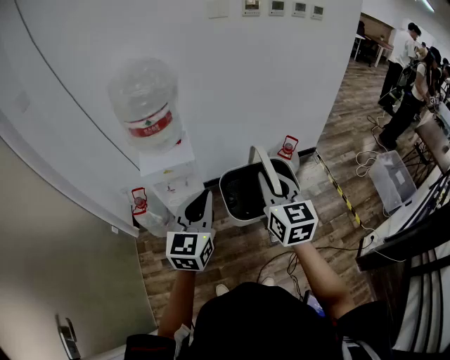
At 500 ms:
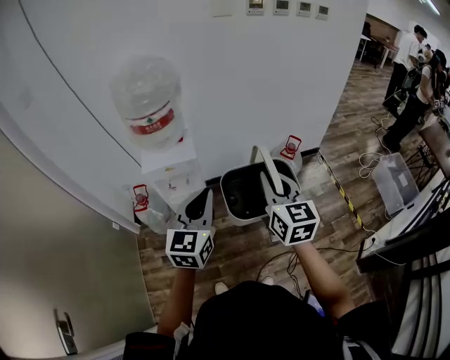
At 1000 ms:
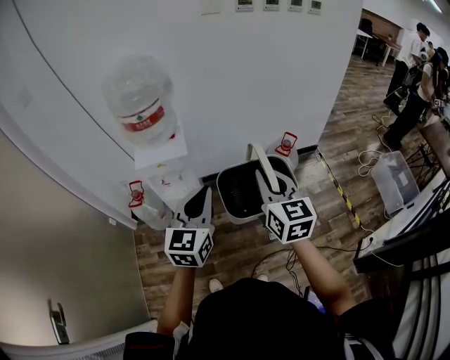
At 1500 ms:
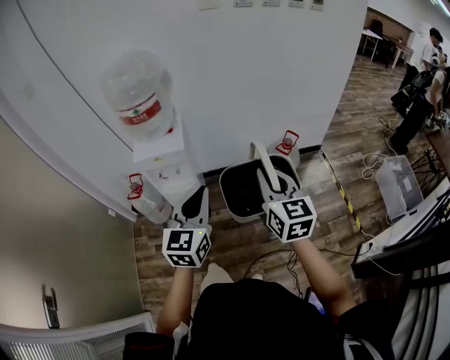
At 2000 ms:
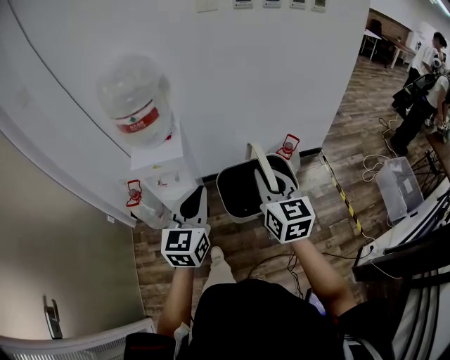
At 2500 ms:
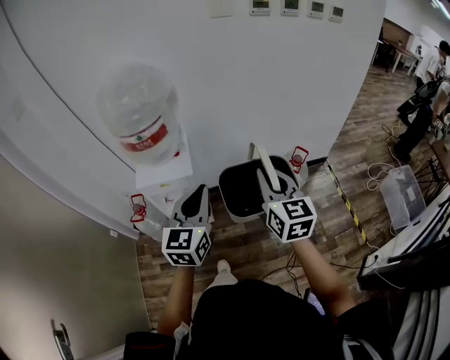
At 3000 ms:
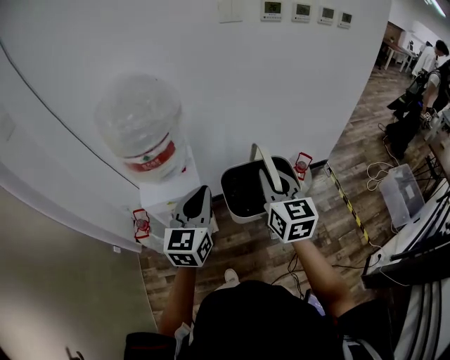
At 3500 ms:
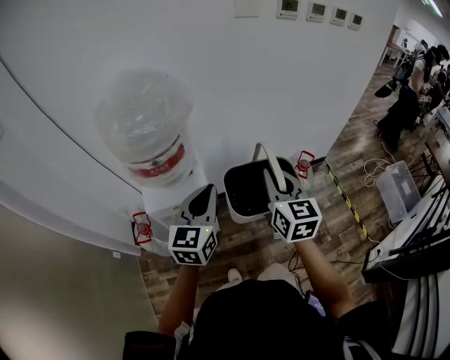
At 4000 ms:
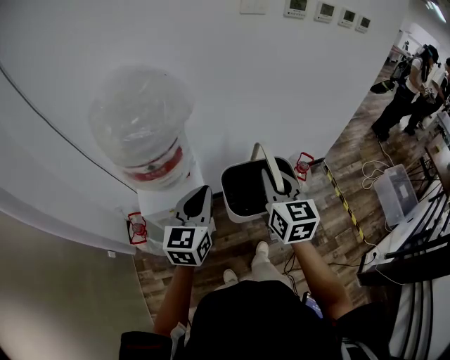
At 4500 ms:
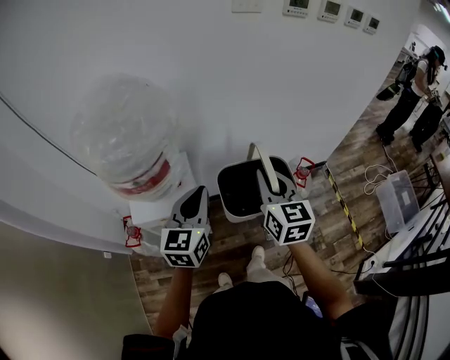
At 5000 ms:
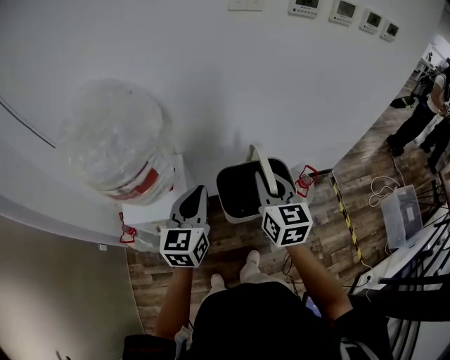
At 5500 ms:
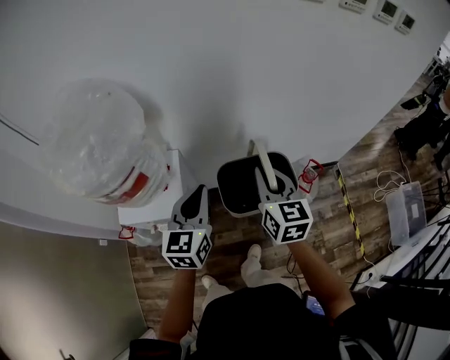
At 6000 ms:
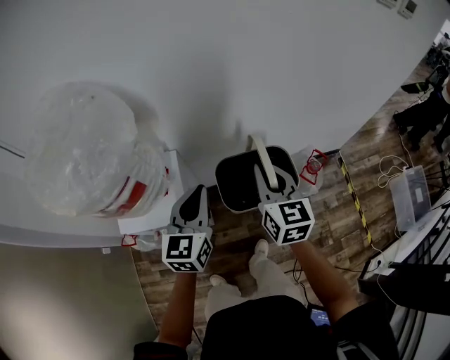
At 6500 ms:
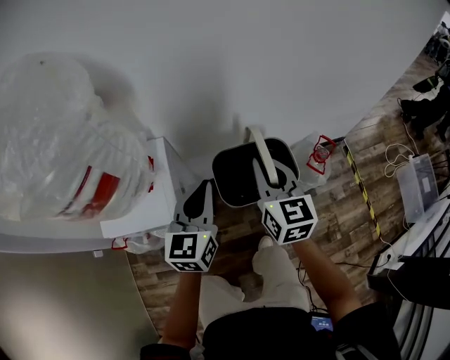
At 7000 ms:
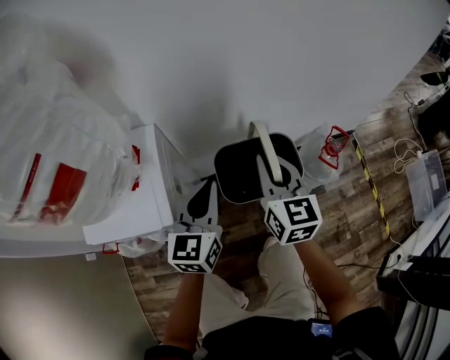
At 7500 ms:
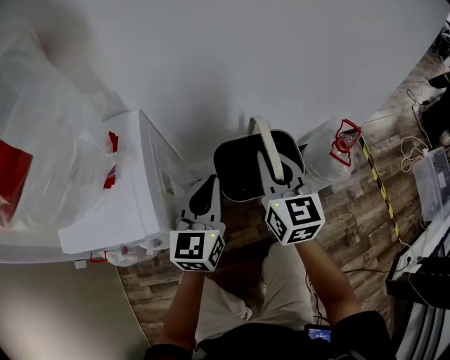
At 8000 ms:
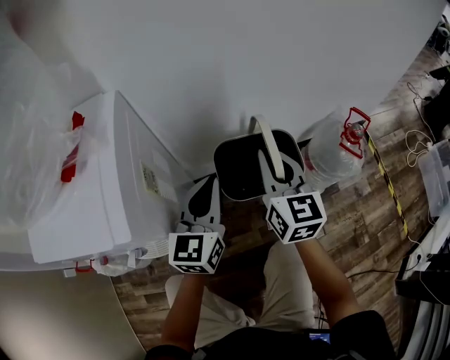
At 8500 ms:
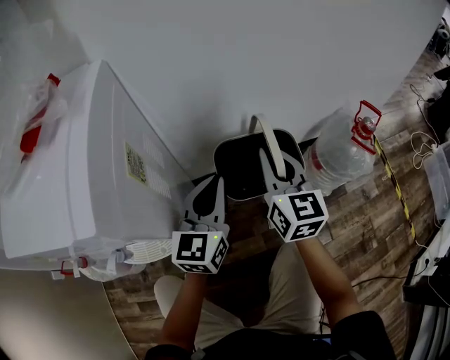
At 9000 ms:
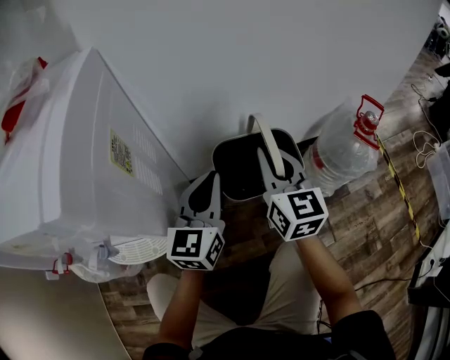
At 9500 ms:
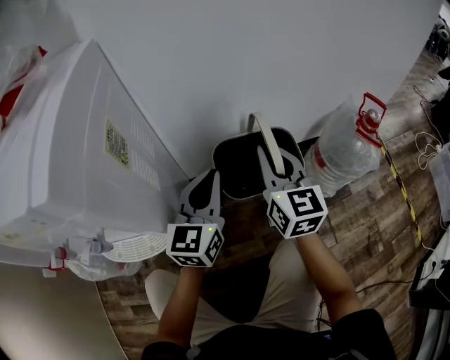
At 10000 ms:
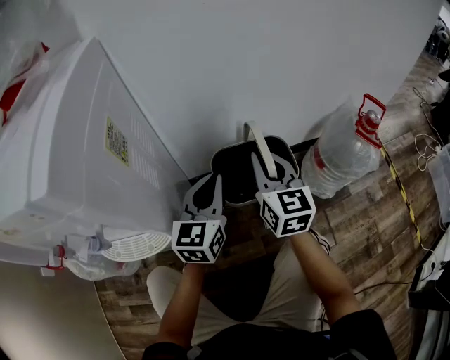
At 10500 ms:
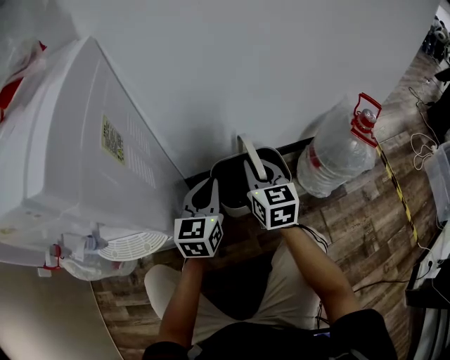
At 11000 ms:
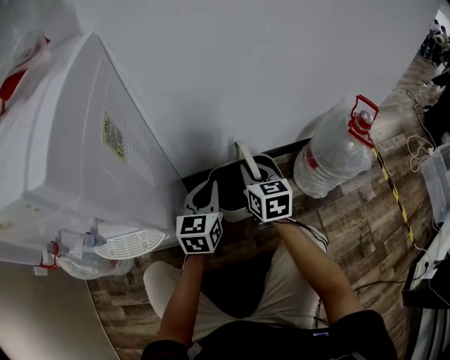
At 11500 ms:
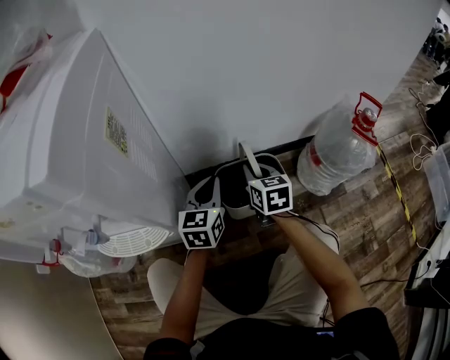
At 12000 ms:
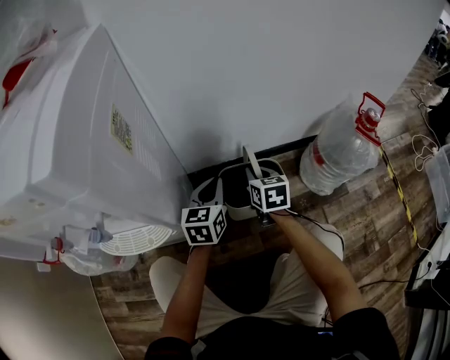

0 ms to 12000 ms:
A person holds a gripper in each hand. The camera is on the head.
0 ms to 2000 ms: The two grippers go about 10 cm to the right.
2000 ms to 4000 ms: Both grippers move forward and to the left, roughly 25 cm.
4000 ms to 6000 ms: The left gripper goes approximately 15 cm forward, downward and to the right. Meanwhile the right gripper heads forward and downward, covering roughly 20 cm.
6000 ms to 8000 ms: The grippers both shift downward by about 35 cm.
8000 ms to 10000 ms: The grippers both shift downward by some 15 cm.
10000 ms to 12000 ms: The right gripper is displaced downward by about 15 cm, and changes its angle by approximately 30 degrees. The left gripper moves downward, roughly 10 cm.

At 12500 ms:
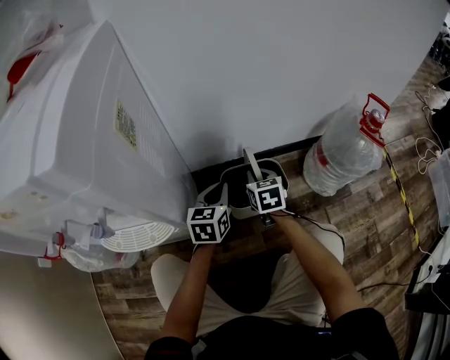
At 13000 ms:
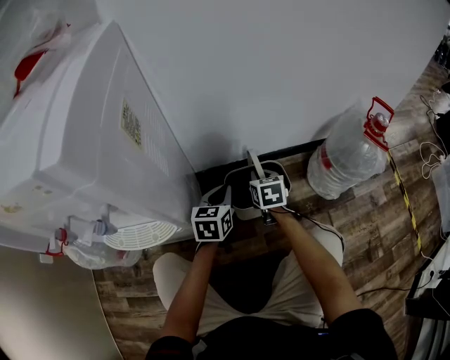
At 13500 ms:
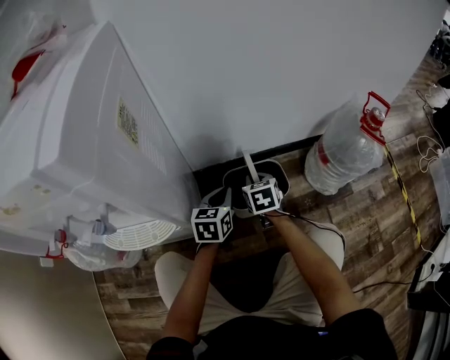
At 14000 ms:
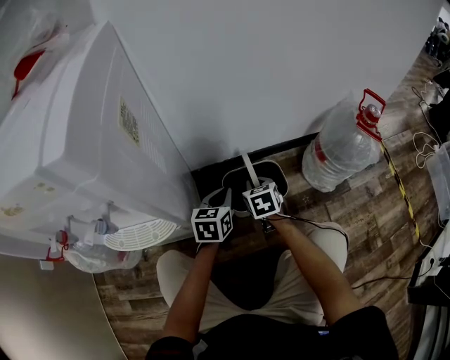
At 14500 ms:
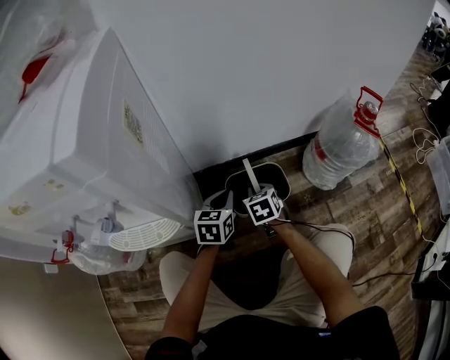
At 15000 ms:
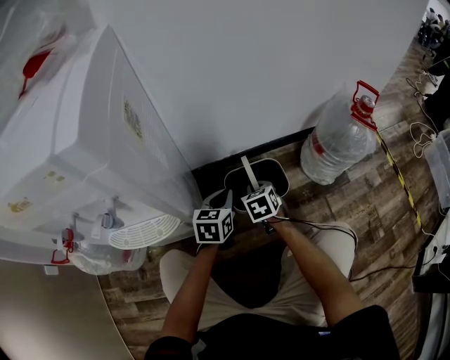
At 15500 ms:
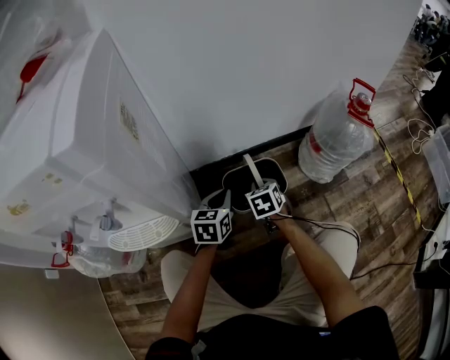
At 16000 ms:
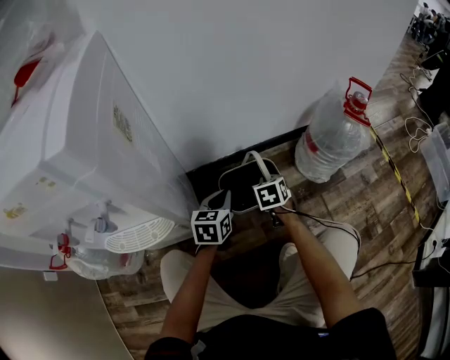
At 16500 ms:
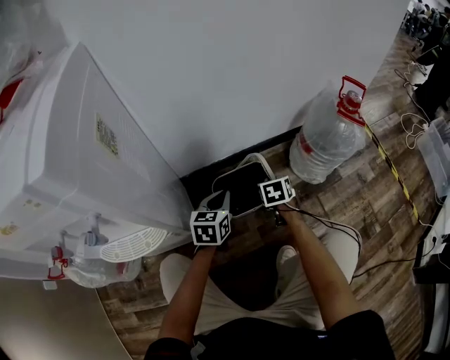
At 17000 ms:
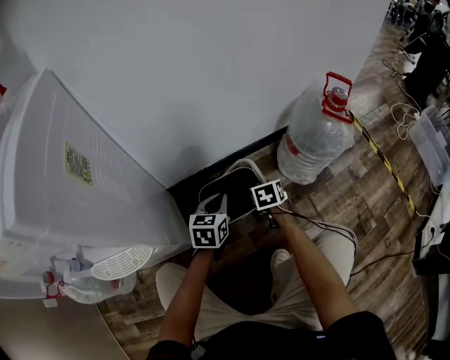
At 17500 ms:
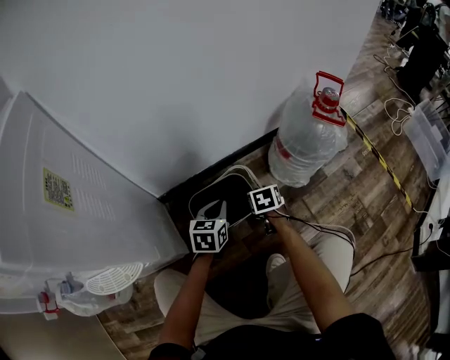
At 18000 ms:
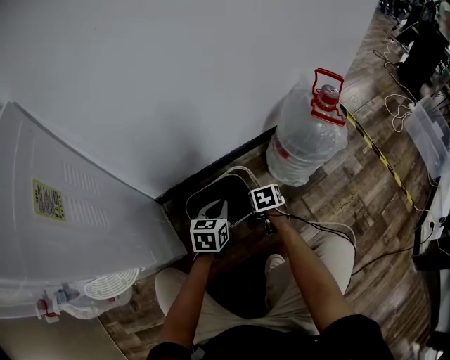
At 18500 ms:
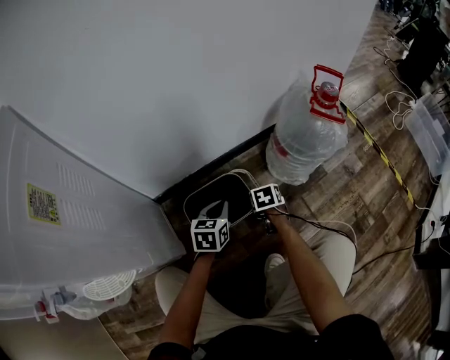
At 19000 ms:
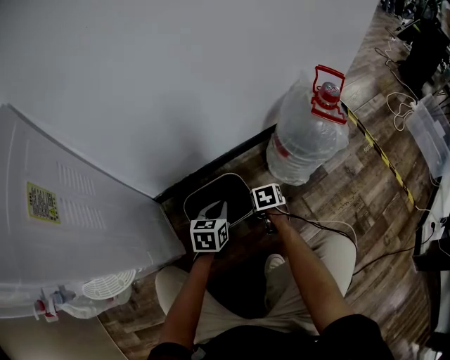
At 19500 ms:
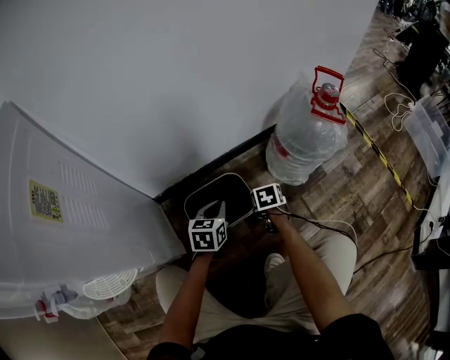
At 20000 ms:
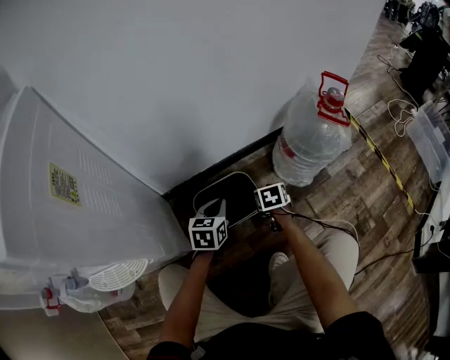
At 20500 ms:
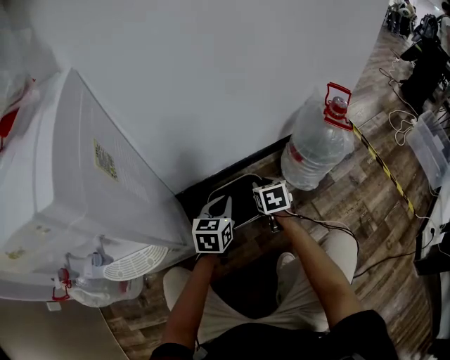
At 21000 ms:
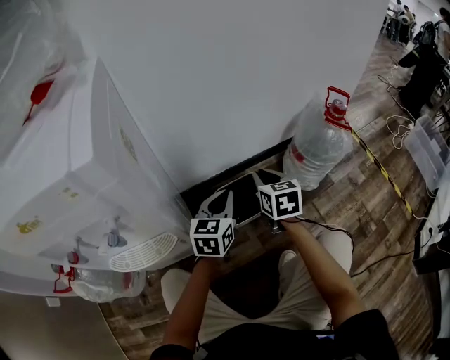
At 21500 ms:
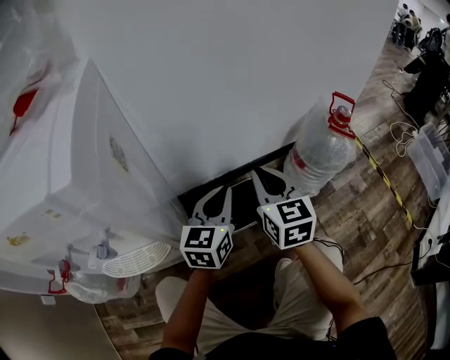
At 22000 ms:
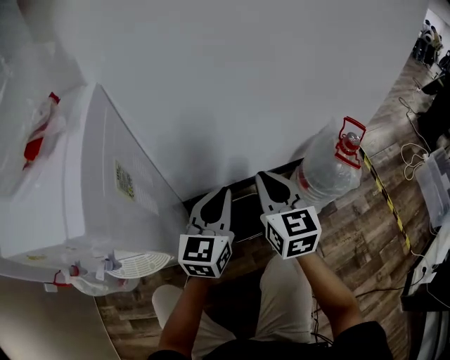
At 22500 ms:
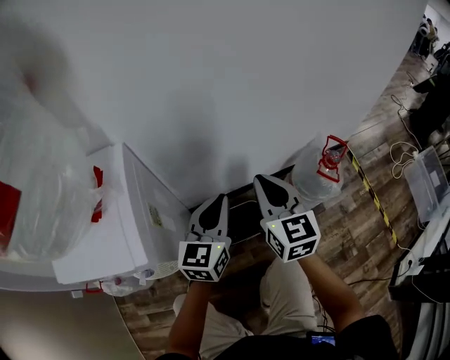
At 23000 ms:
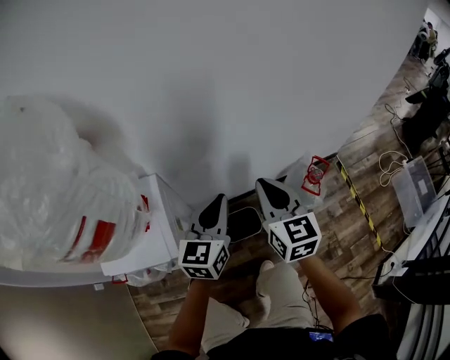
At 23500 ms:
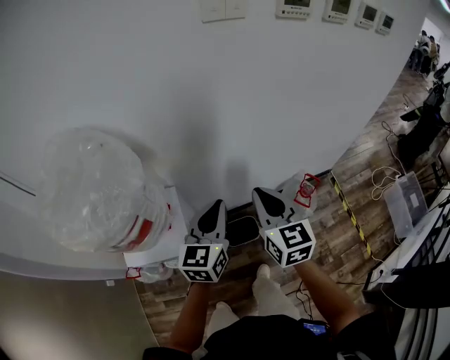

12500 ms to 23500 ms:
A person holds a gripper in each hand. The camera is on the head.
12500 ms to 14500 ms: The right gripper moves backward, approximately 5 cm.
14500 ms to 16000 ms: The right gripper moves to the right, approximately 5 cm.
16000 ms to 18000 ms: The right gripper is displaced to the right and downward by some 15 cm; the left gripper travels to the right, forward and downward by roughly 15 cm.
18000 ms to 20000 ms: There are only small adjustments of the grippers.
20000 ms to 21500 ms: The two grippers go roughly 25 cm upward. The left gripper swivels approximately 30 degrees, while the right gripper angles its fingers upward, by about 40 degrees.
21500 ms to 23500 ms: The grippers both shift upward by approximately 60 cm.

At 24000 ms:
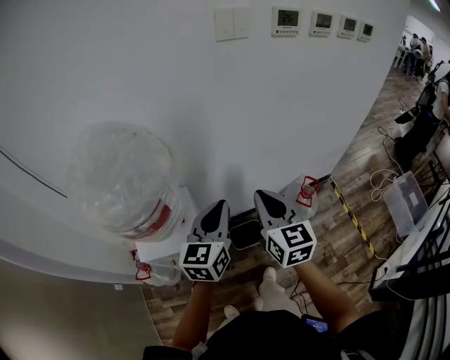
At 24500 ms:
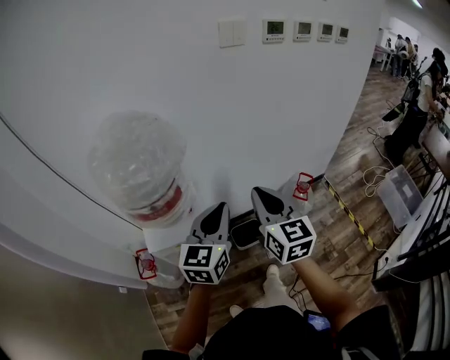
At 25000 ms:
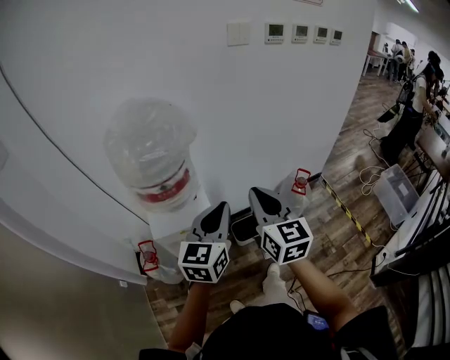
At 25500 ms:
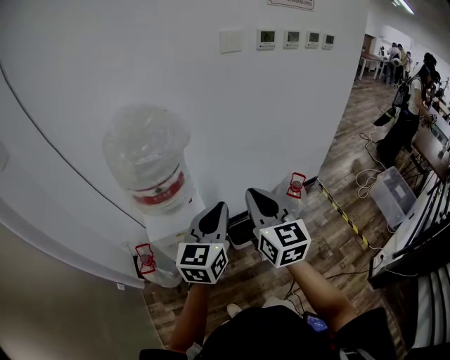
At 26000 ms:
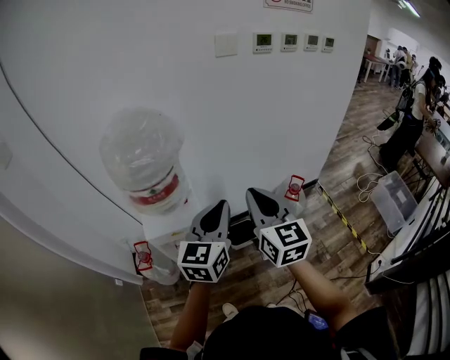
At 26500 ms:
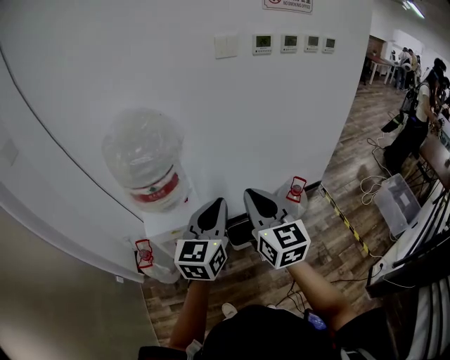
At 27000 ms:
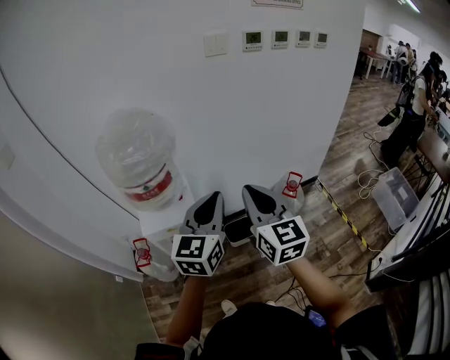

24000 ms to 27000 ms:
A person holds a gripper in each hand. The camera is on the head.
24000 ms to 25500 ms: The grippers both shift backward by approximately 15 cm.
25500 ms to 27000 ms: Both grippers travel together to the right, some 5 cm.

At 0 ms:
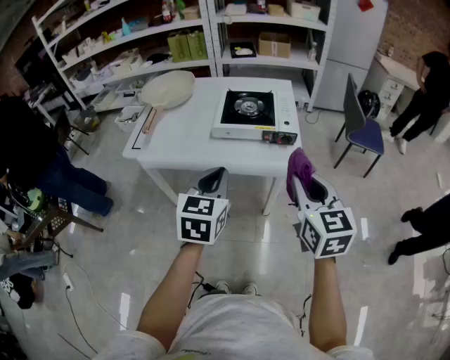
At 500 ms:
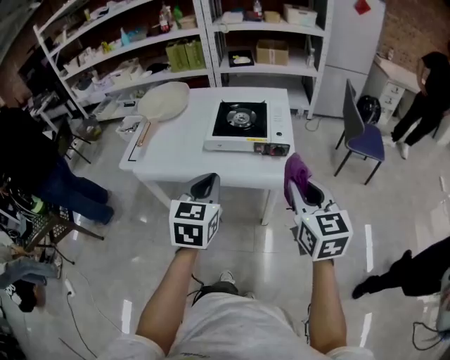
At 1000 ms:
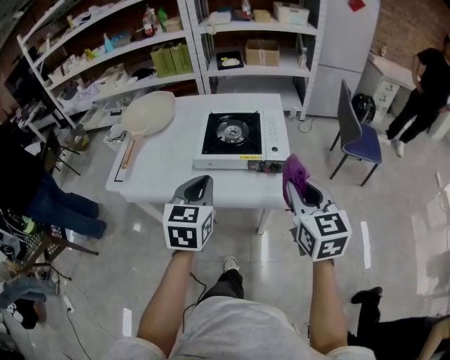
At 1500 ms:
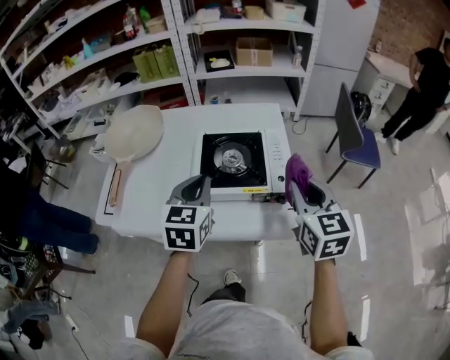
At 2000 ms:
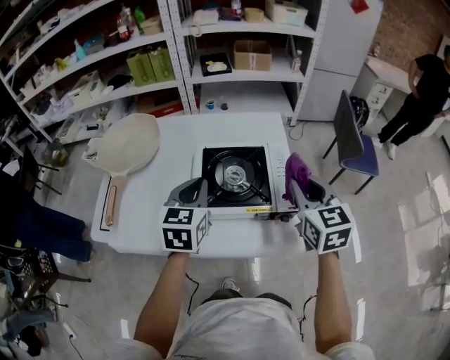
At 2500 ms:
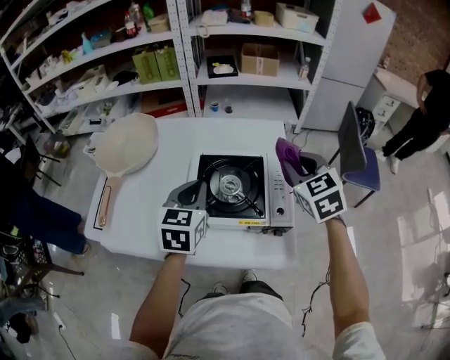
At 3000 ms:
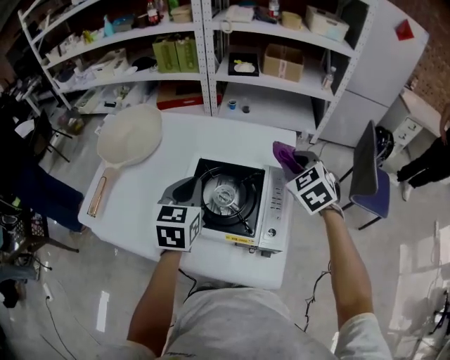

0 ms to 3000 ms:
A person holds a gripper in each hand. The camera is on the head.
0 ms to 1500 ms: The two grippers go roughly 25 cm forward.
1500 ms to 3000 ms: The right gripper shifts approximately 25 cm forward, and turns by roughly 40 degrees. The left gripper heads forward, covering some 15 cm.
